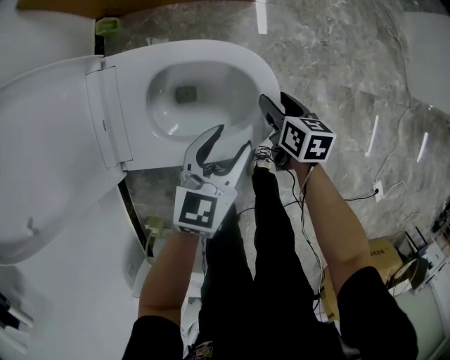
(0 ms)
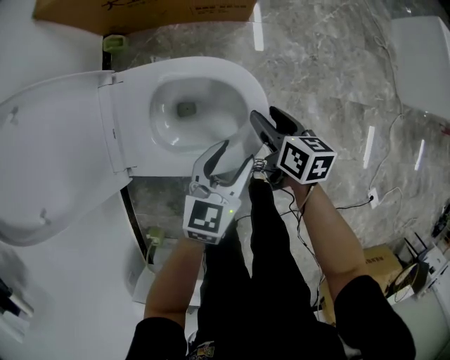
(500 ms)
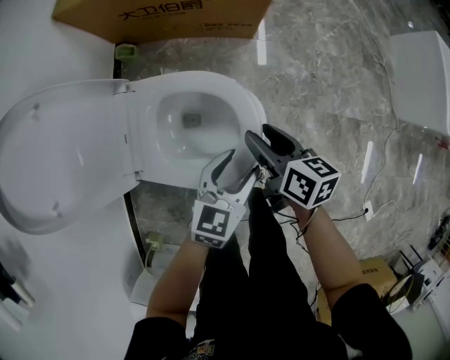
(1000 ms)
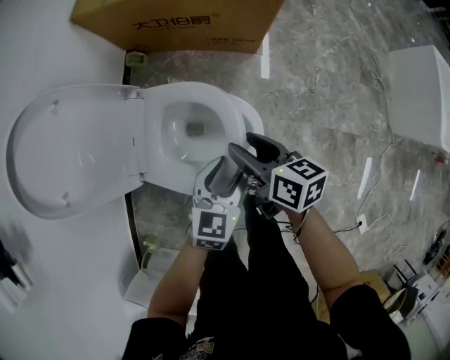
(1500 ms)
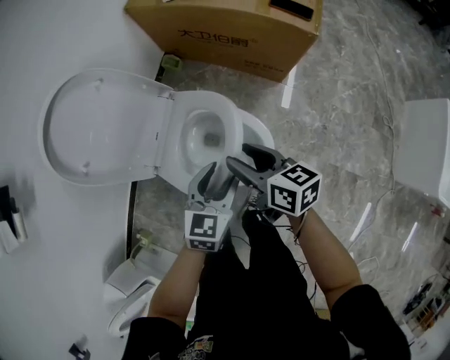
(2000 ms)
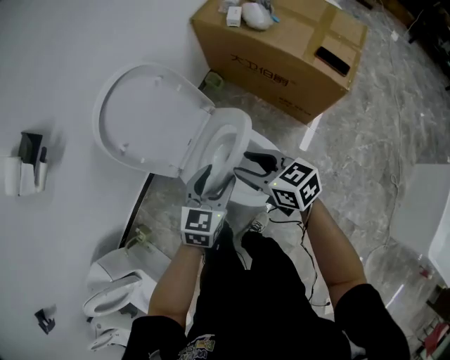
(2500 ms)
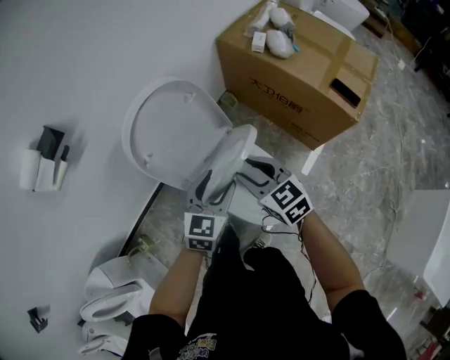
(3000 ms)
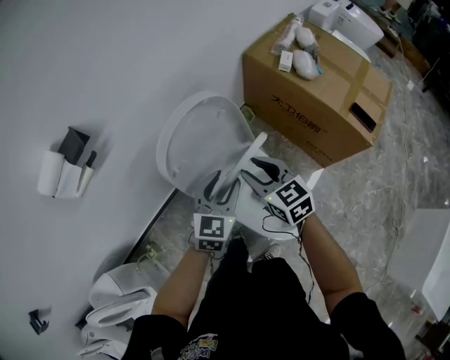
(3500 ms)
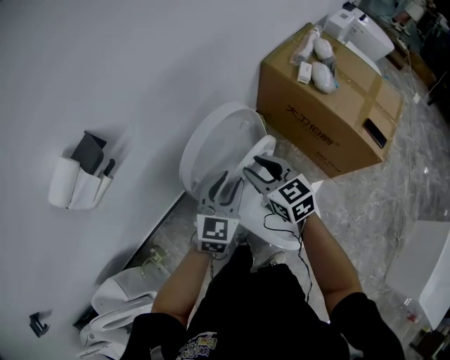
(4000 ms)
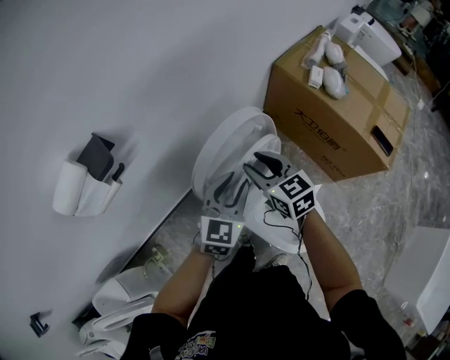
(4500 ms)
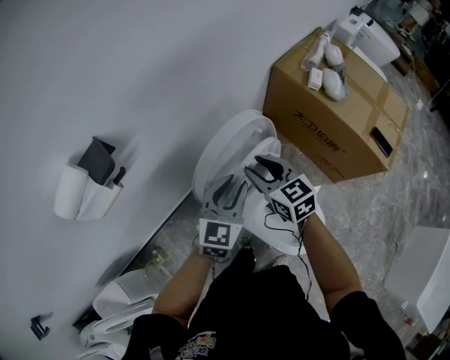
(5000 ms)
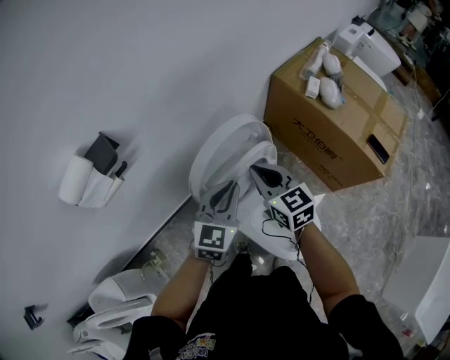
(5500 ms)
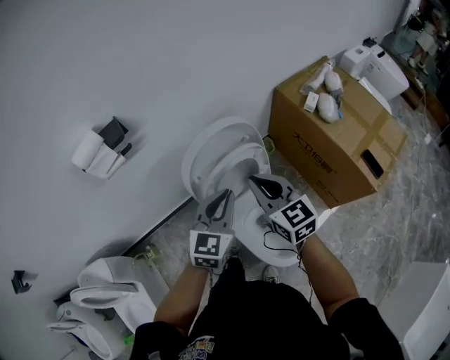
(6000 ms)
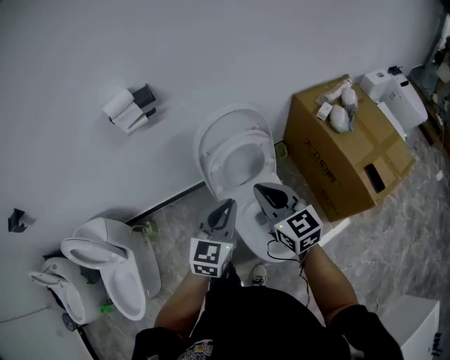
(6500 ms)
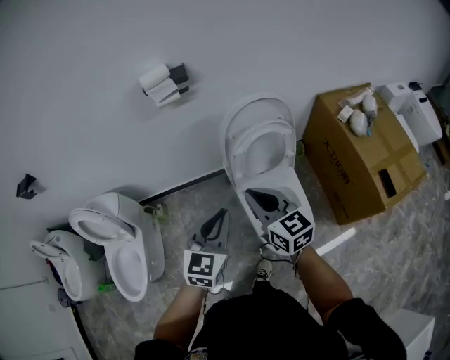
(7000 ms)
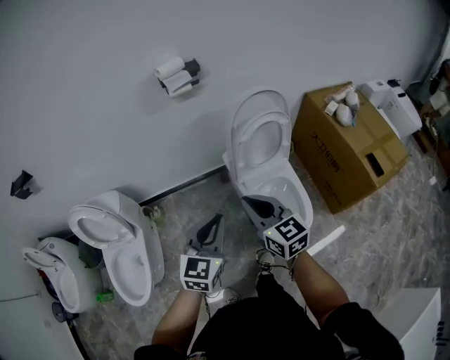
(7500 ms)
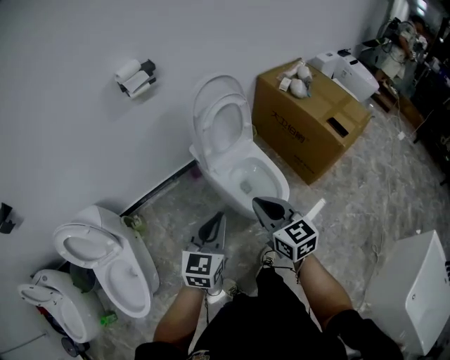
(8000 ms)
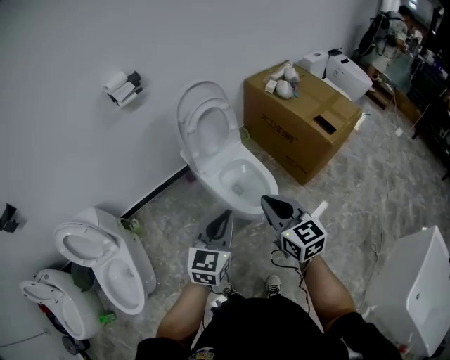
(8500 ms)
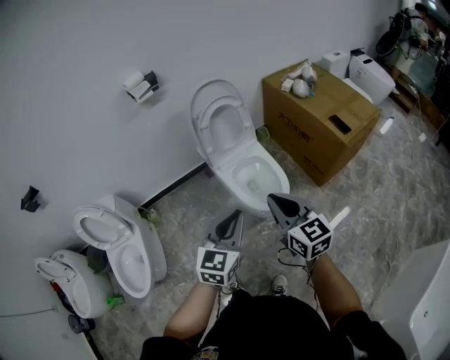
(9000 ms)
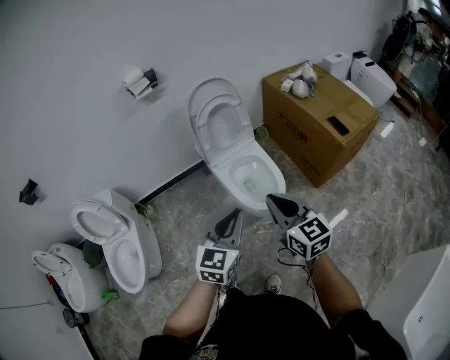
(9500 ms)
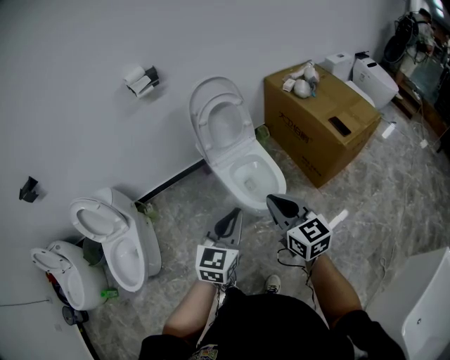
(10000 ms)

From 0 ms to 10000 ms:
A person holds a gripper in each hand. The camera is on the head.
From 0 ms to 2000 ms: The left gripper is displaced upward by about 15 cm, and swivels roughly 30 degrees; the right gripper moves upward, about 30 cm, and rotates some 40 degrees.
From 2000 ms to 4000 ms: The two grippers go roughly 35 cm to the left, forward and upward. The right gripper rolls counterclockwise, seen from behind, by approximately 40 degrees. The left gripper turns by roughly 30 degrees.
From 4000 ms to 6000 ms: Both grippers travel together upward and backward, approximately 10 cm. The left gripper closes up. Meanwhile the right gripper closes its fingers.
From 6000 ms to 8000 ms: The two grippers travel together, backward, roughly 40 cm.
From 8000 ms to 10000 ms: The two grippers go about 20 cm to the right and backward.

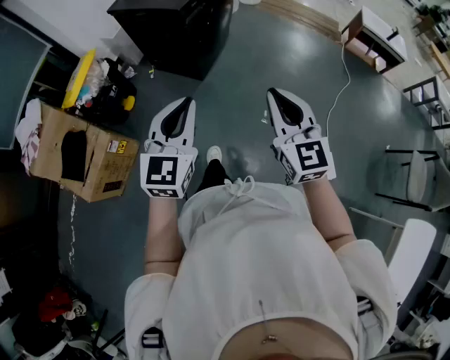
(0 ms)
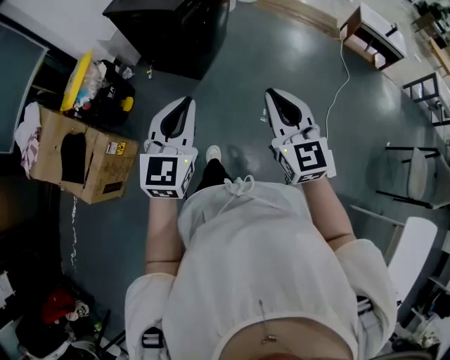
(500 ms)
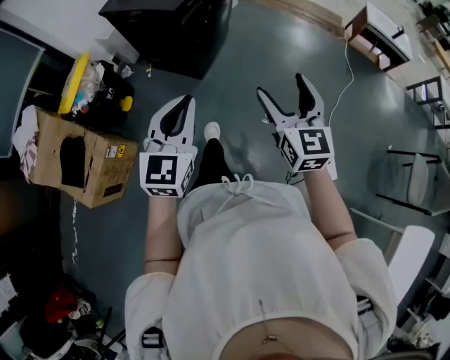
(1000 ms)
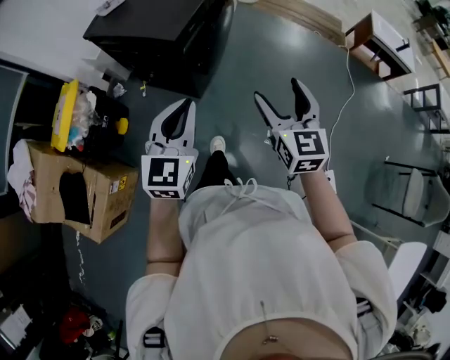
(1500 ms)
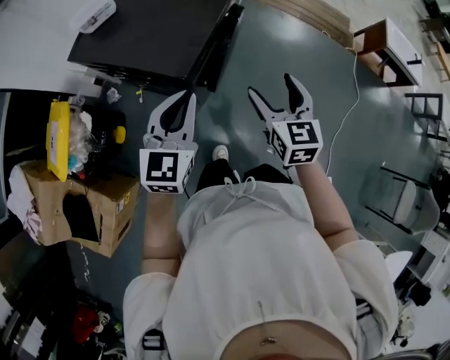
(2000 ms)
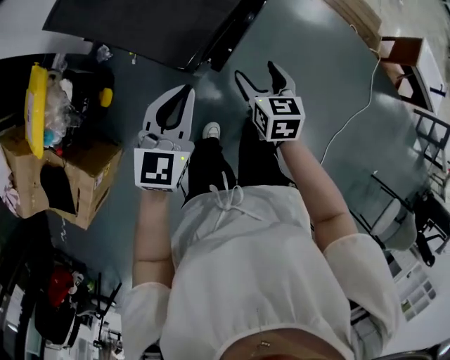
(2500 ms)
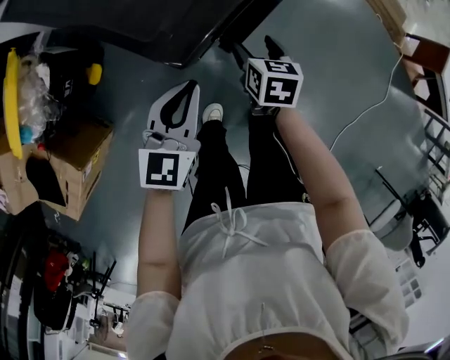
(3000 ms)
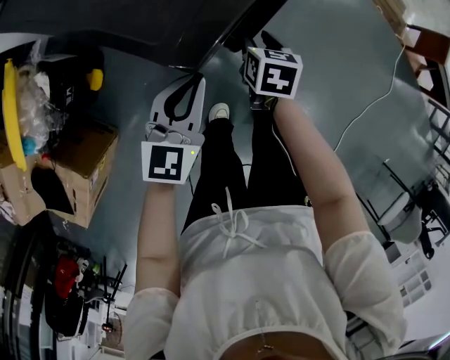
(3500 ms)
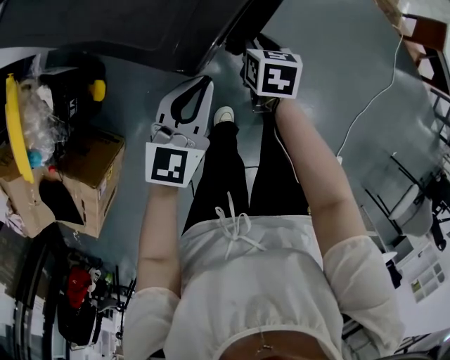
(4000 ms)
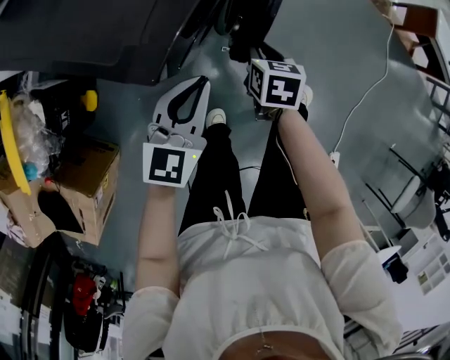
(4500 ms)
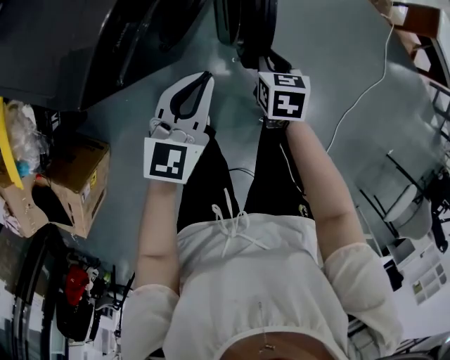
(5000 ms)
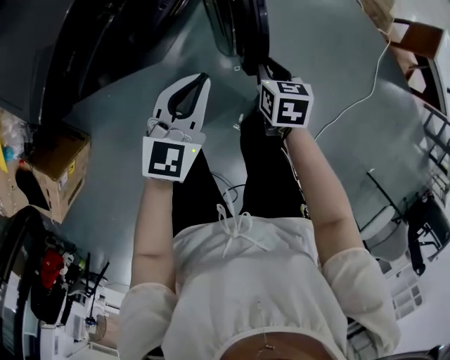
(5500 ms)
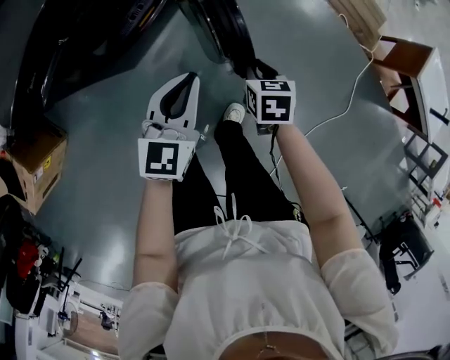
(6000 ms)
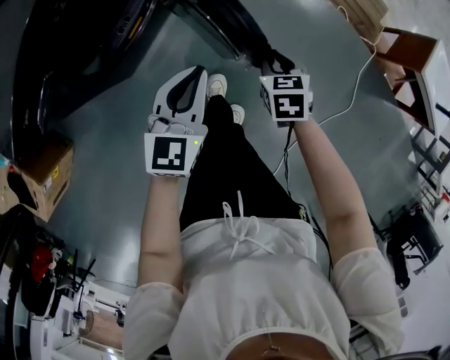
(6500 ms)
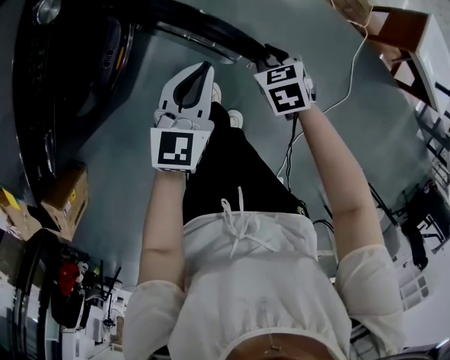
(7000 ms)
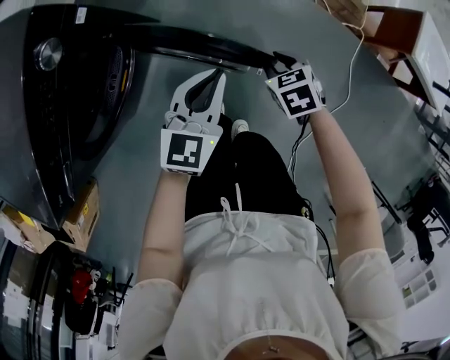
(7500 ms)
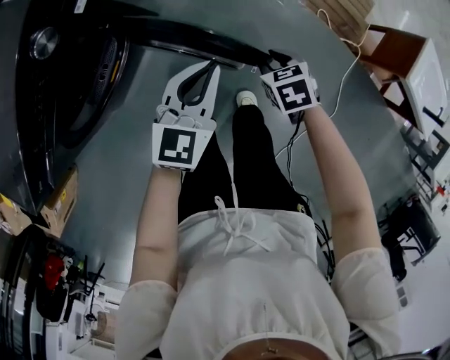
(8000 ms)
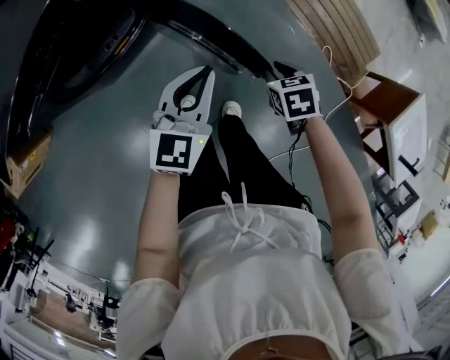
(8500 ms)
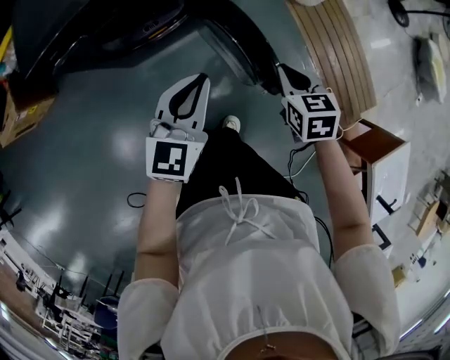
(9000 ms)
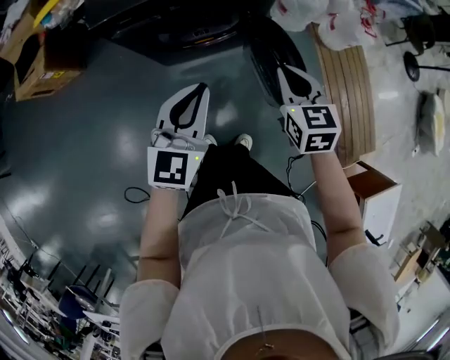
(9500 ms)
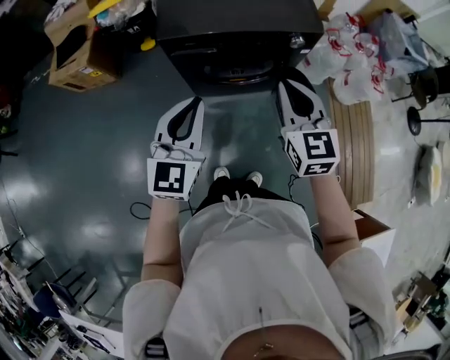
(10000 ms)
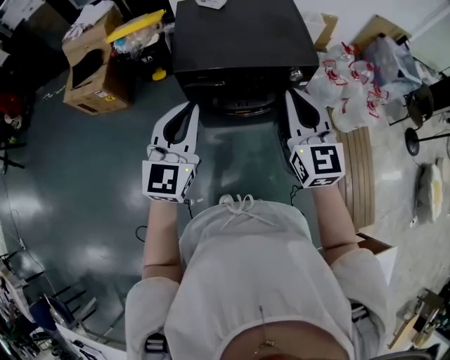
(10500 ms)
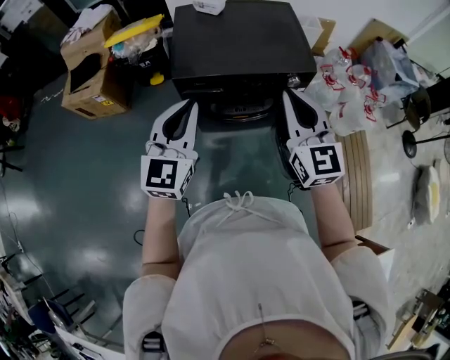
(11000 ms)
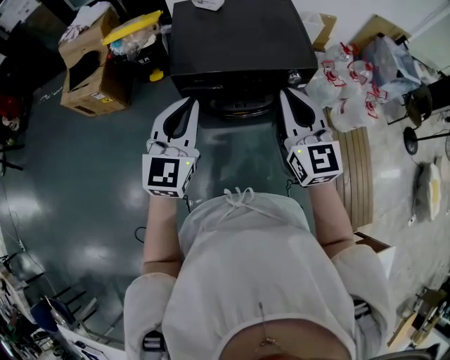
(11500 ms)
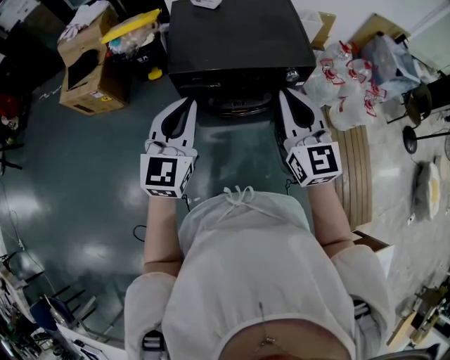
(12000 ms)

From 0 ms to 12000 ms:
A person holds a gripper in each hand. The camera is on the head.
From 0 ms to 2000 ms: Both grippers are carried forward, some 50 cm. The right gripper rotates roughly 20 degrees, and opens.
From 2000 ms to 4000 ms: The grippers both shift downward by some 35 cm. The right gripper angles its fingers downward, by approximately 30 degrees, and closes up.
From 4000 ms to 6000 ms: The two grippers travel together, to the right, roughly 40 cm.
From 6000 ms to 8000 ms: Both grippers travel together forward and to the right, roughly 30 cm.
From 8000 ms to 10000 ms: The left gripper ends up approximately 50 cm from where it was, and rotates approximately 60 degrees. The right gripper travels upward by roughly 40 cm, and points its fingers some 50 degrees further upward.
From 10000 ms to 12000 ms: The left gripper moves upward and forward, roughly 10 cm. Meanwhile the right gripper is displaced upward by about 10 cm.

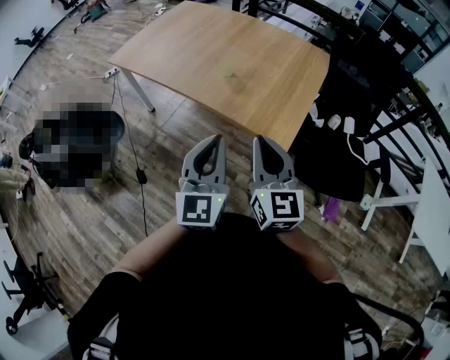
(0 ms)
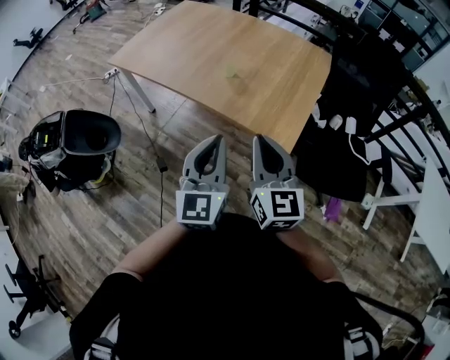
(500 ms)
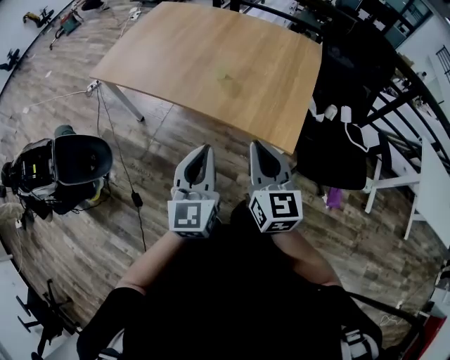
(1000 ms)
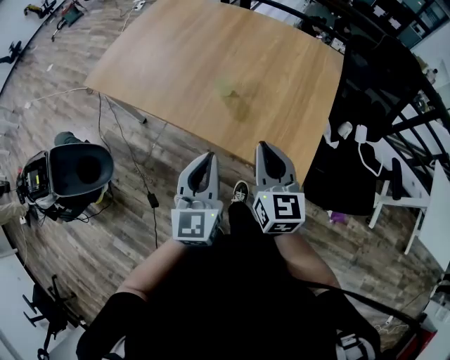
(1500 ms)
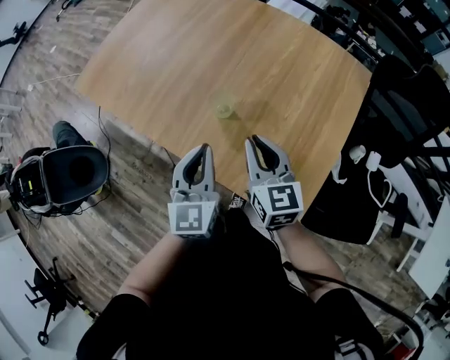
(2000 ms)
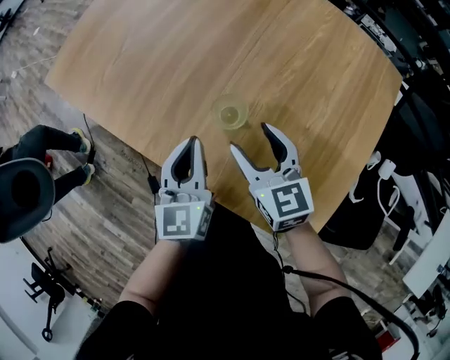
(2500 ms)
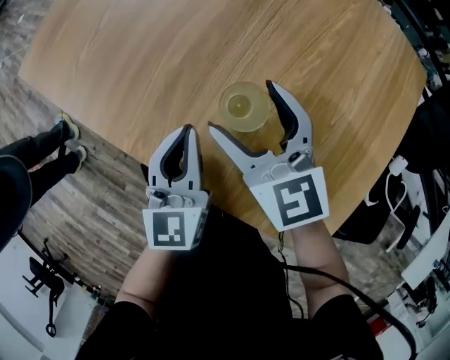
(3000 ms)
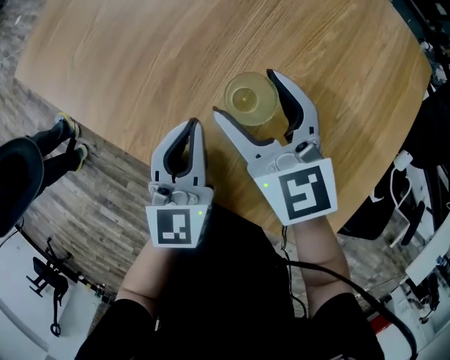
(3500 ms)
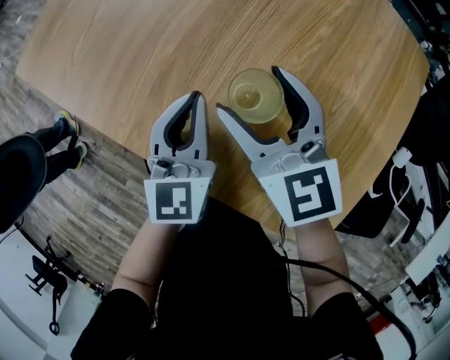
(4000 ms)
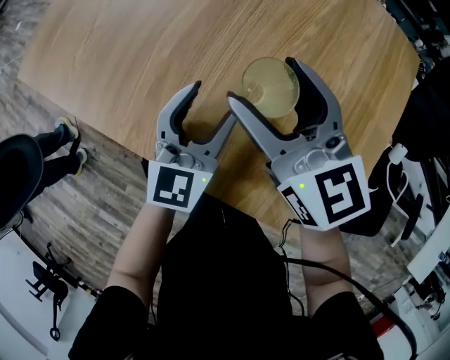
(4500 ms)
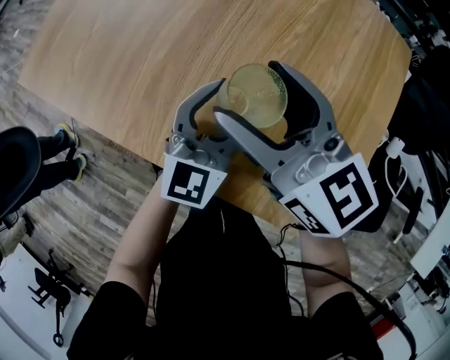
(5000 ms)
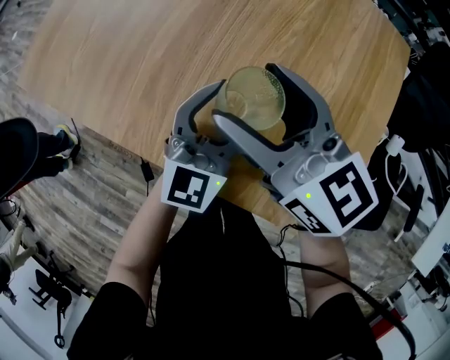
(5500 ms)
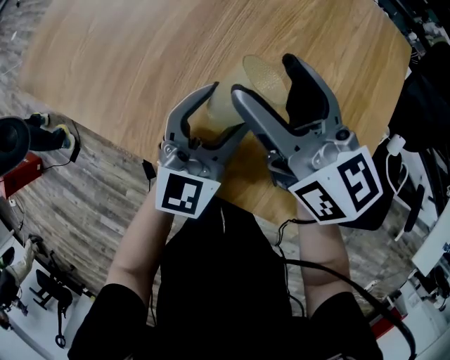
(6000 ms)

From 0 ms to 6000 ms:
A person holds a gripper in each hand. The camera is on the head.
From 0 ms to 2000 ms: Both grippers are carried forward, roughly 40 cm.
From 2000 ms to 4000 ms: The left gripper is displaced downward and forward by about 25 cm. Meanwhile the right gripper moves forward and downward, roughly 20 cm, and opens up.
From 4000 ms to 6000 ms: The right gripper moves upward and to the right, approximately 10 cm, and changes its angle by about 20 degrees, while the left gripper moves to the right, about 10 cm, changes its angle by about 30 degrees, and opens its fingers.
